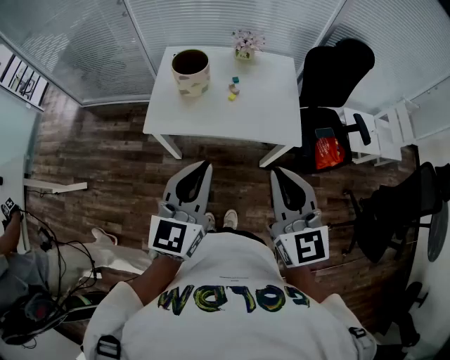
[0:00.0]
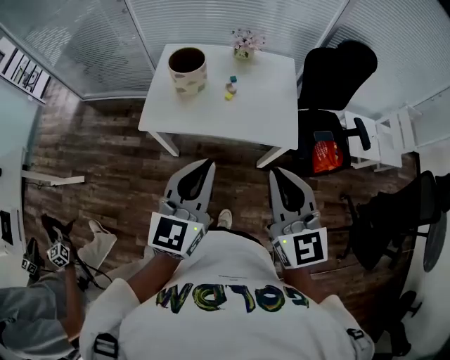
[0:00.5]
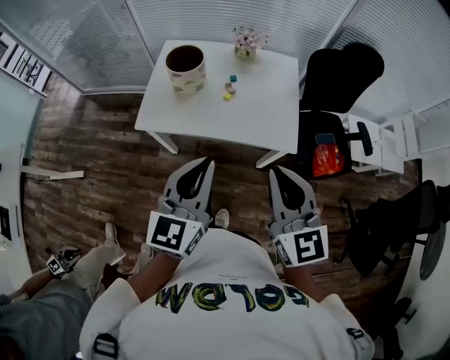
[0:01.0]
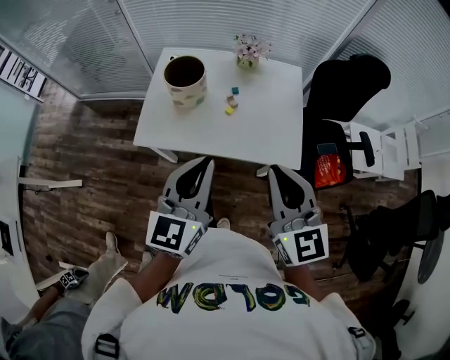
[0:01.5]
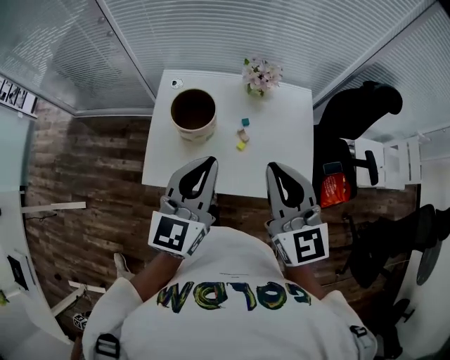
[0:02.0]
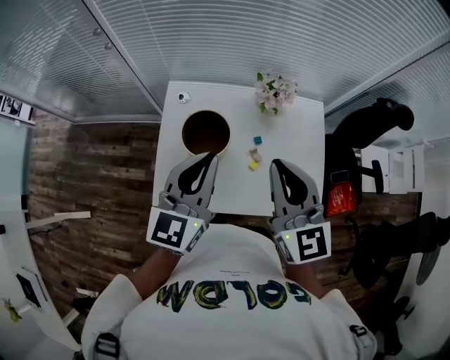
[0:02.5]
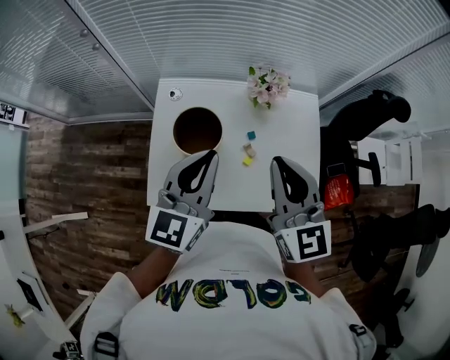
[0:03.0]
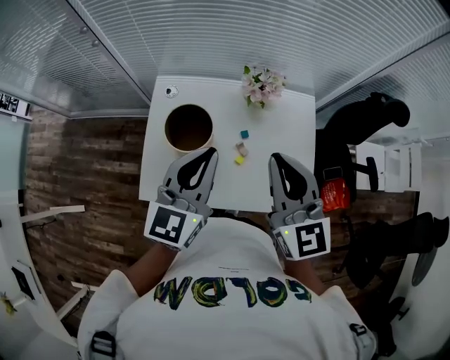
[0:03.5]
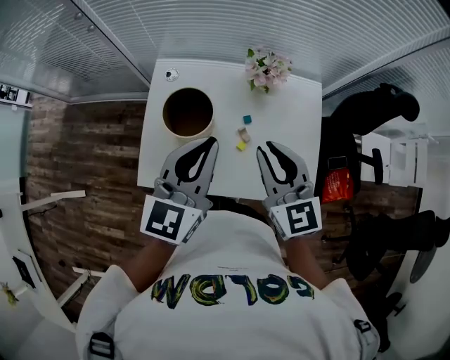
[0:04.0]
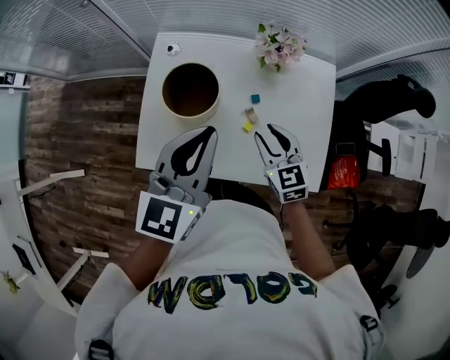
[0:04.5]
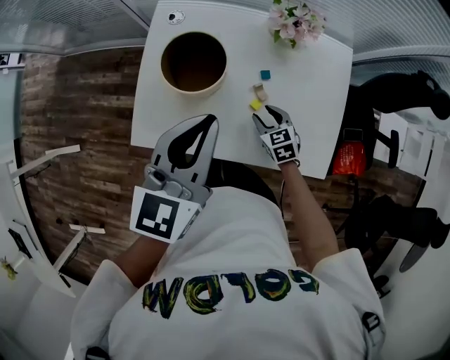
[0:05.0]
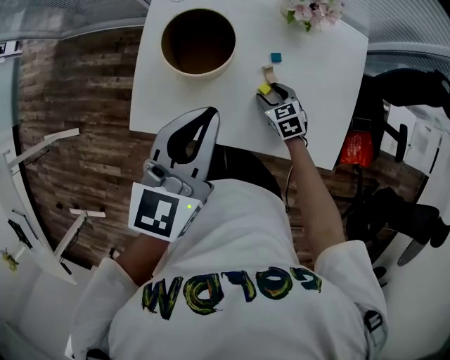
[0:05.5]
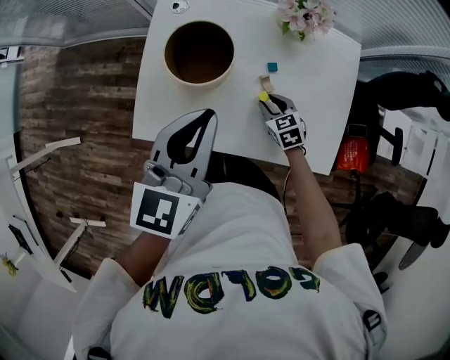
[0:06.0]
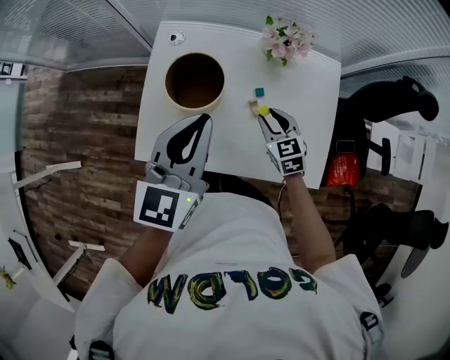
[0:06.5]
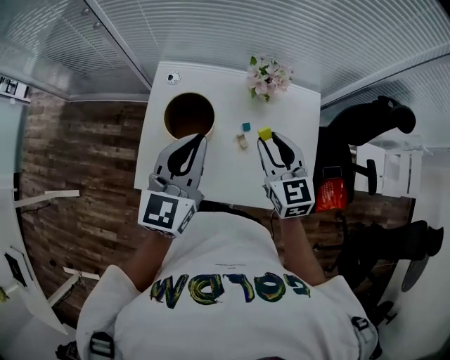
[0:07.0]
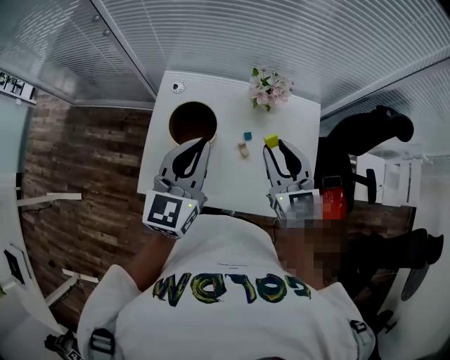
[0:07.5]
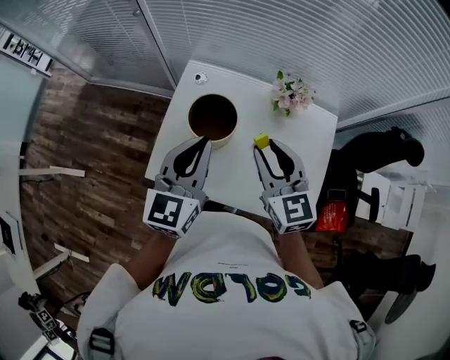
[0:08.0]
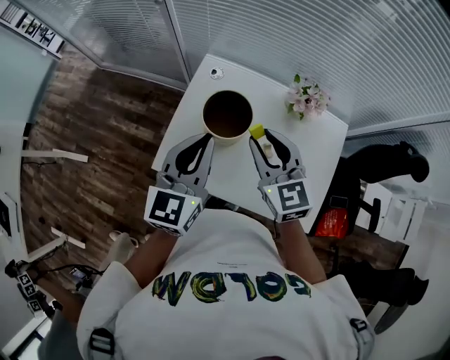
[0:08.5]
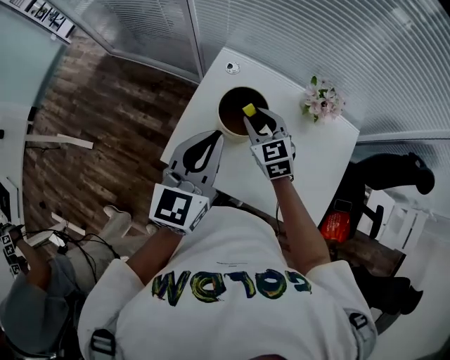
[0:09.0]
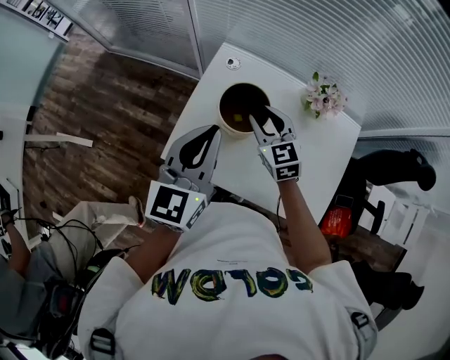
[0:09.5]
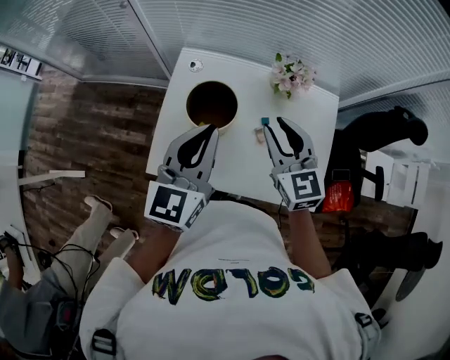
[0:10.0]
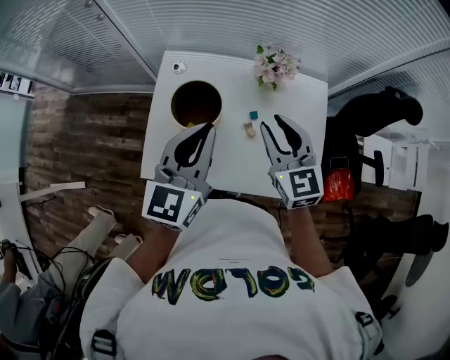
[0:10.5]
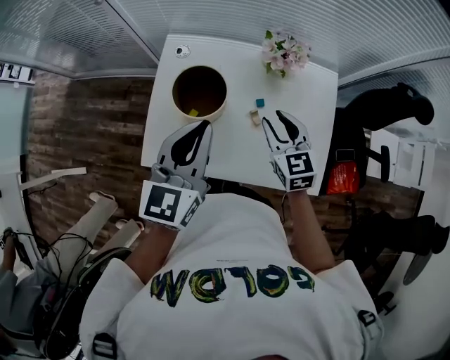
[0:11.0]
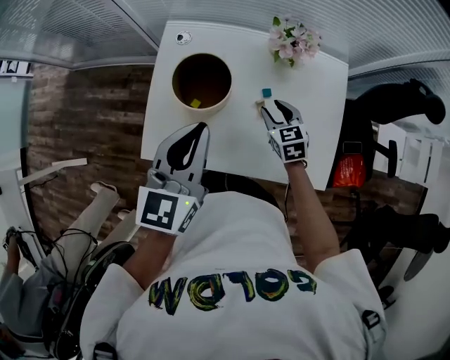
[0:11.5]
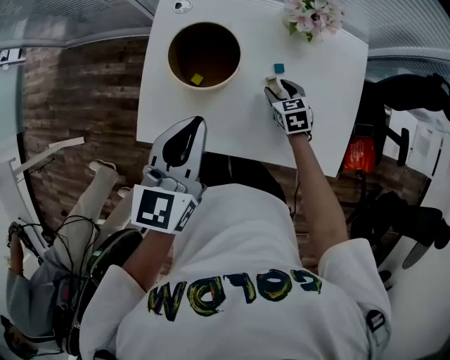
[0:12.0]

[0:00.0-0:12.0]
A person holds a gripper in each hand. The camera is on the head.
0:00.0 to 0:02.0: The two grippers go some 30 cm forward.
0:02.0 to 0:04.0: The right gripper moves forward and downward, about 15 cm, while the left gripper is displaced forward by about 10 cm.
0:04.0 to 0:06.0: The left gripper shifts approximately 10 cm downward; the right gripper is displaced downward by approximately 40 cm, tilts its fingers approximately 40 degrees downward, and opens and closes again.
0:06.0 to 0:08.0: The right gripper goes some 35 cm upward, and angles its fingers upward, by approximately 30 degrees; the left gripper goes approximately 10 cm upward.
0:08.0 to 0:10.0: The right gripper reaches approximately 10 cm to the left, then returns. Meanwhile the left gripper moves about 10 cm to the left and comes back.
0:10.0 to 0:12.0: The right gripper travels downward by roughly 35 cm, points its fingers roughly 40 degrees further downward, and opens, while the left gripper heads downward, covering approximately 15 cm.

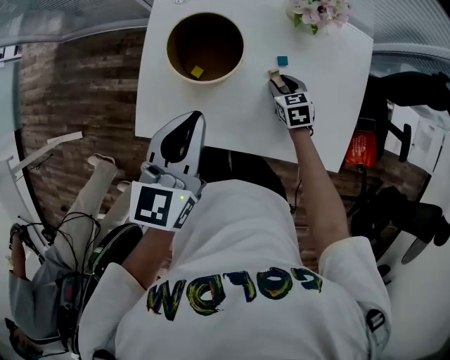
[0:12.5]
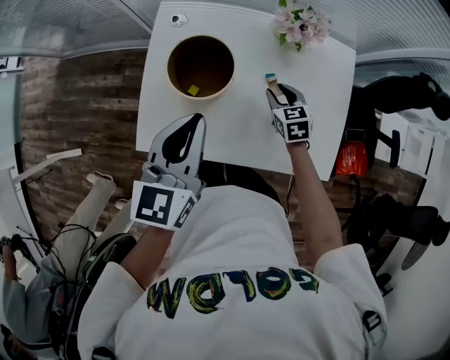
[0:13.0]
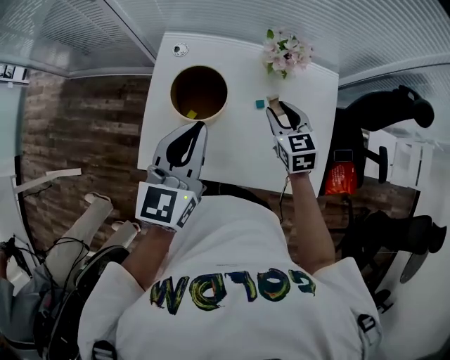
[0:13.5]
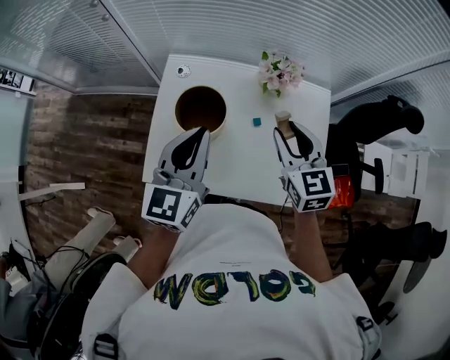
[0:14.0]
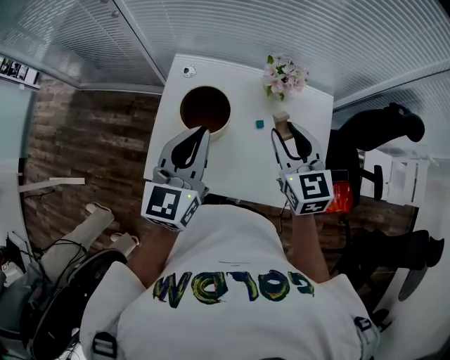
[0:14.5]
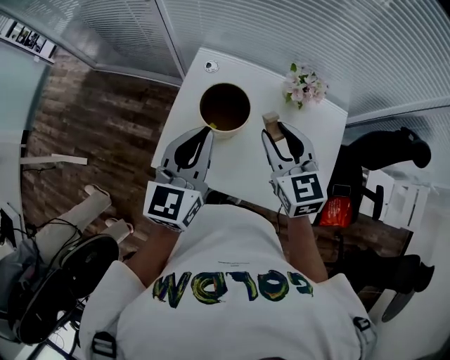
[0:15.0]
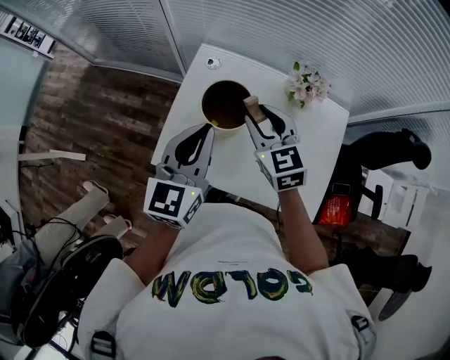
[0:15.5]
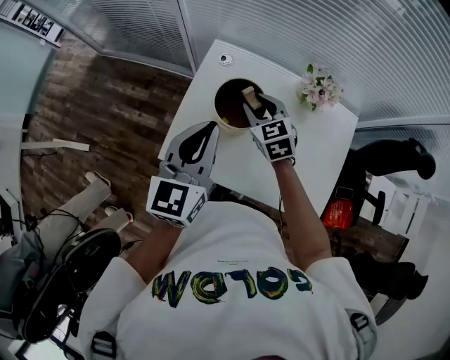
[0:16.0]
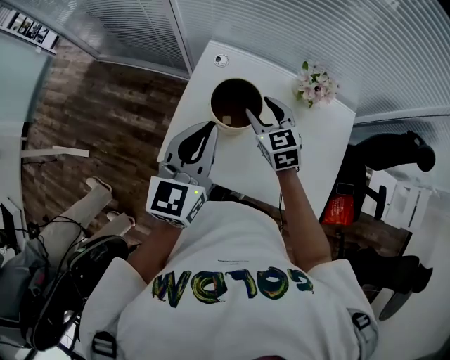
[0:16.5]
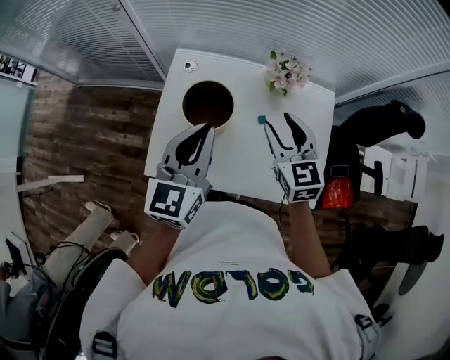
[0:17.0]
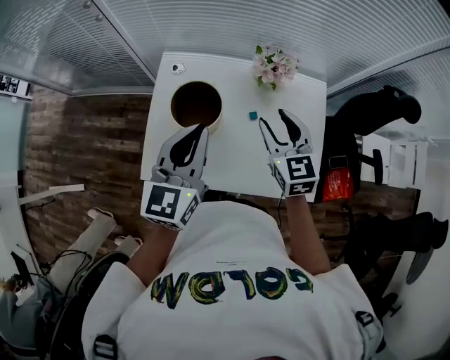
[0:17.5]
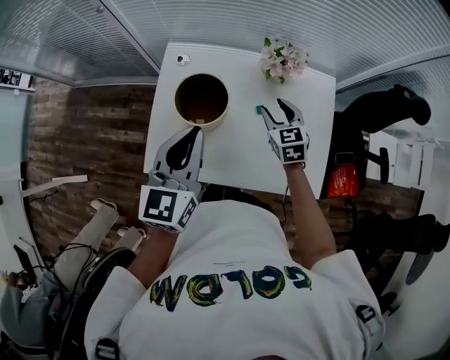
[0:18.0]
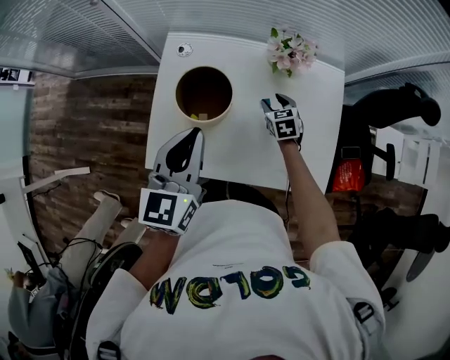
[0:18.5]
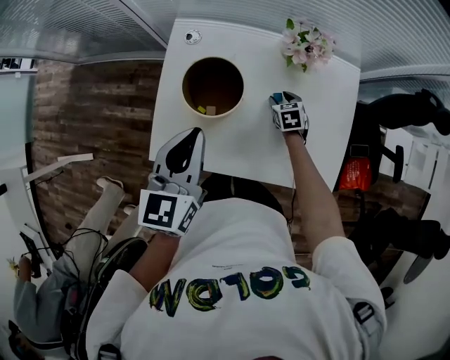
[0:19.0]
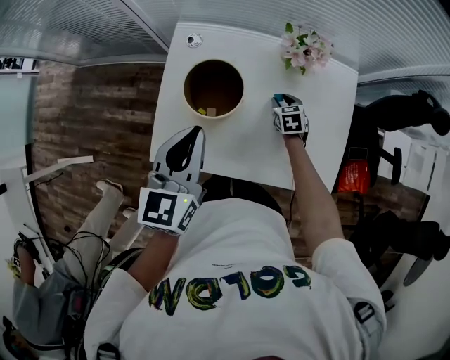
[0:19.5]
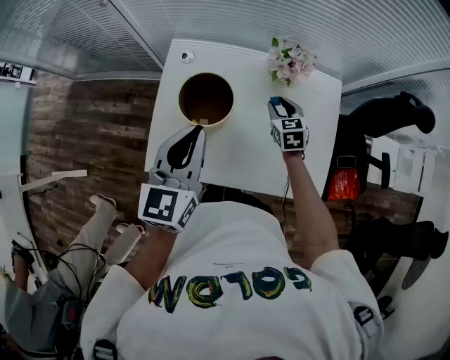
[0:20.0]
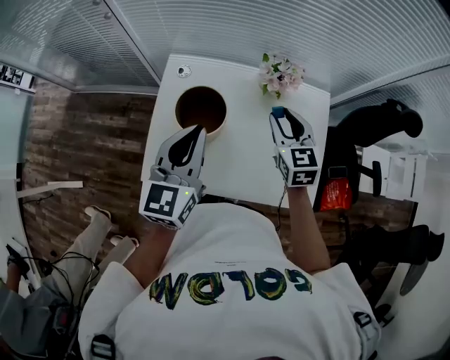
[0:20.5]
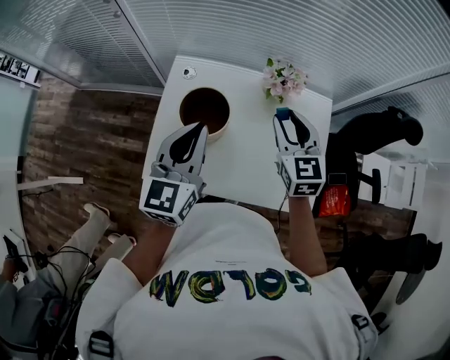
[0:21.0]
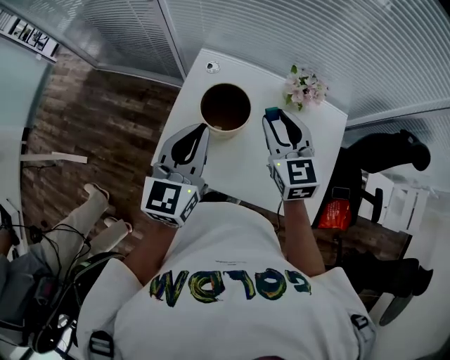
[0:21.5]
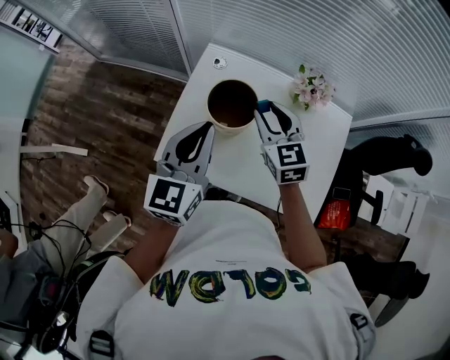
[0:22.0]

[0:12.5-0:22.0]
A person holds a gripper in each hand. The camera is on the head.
0:12.5 to 0:14.5: The left gripper heads upward, covering approximately 15 cm, while the right gripper goes some 40 cm upward, and angles its fingers upward, by approximately 30 degrees.
0:14.5 to 0:16.5: The left gripper moves to the left, roughly 5 cm. The right gripper travels to the left, downward and forward by some 20 cm.
0:16.5 to 0:18.0: The right gripper heads to the right, covering about 15 cm; the left gripper goes roughly 5 cm to the right.
0:18.0 to 0:20.0: The right gripper goes downward and returns, about 20 cm each way.
0:20.0 to 0:22.0: The left gripper shifts by roughly 5 cm. The right gripper shifts some 25 cm upward and to the left, and rotates about 30 degrees.

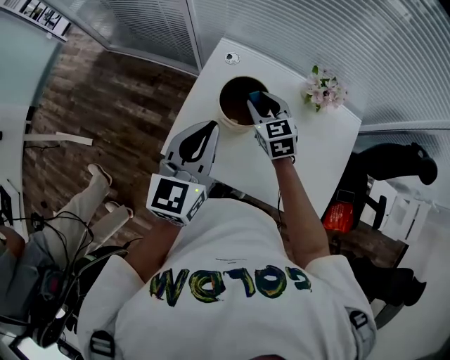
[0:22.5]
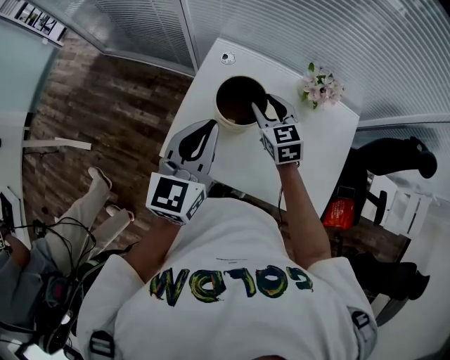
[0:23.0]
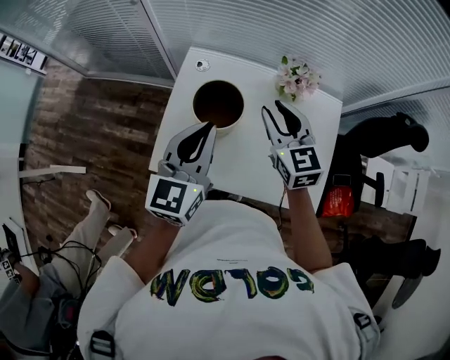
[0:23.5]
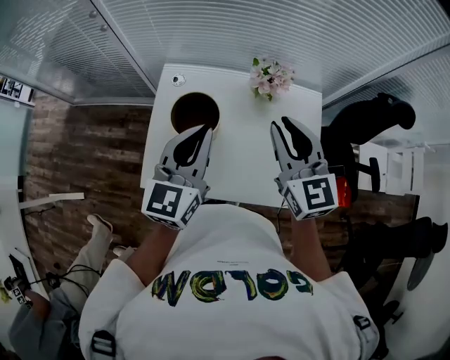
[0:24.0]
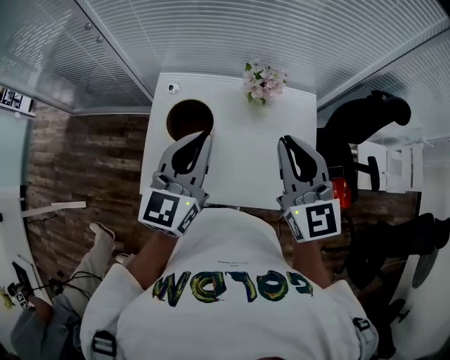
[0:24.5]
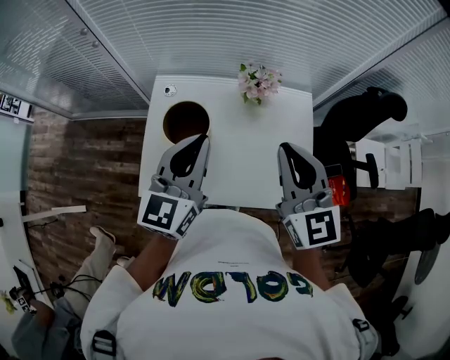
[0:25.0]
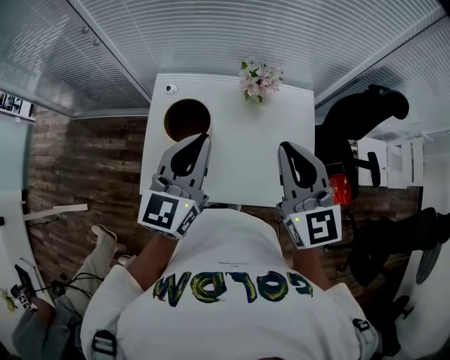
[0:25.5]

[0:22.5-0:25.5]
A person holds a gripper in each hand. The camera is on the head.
0:22.5 to 0:24.0: The left gripper heads to the right, covering some 10 cm. The right gripper travels upward, to the right and backward by roughly 30 cm, and swivels approximately 30 degrees.
0:24.0 to 0:25.5: The right gripper travels backward by about 5 cm.

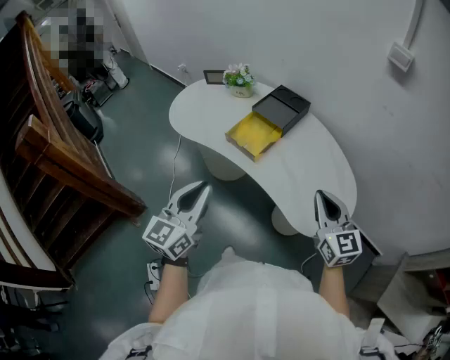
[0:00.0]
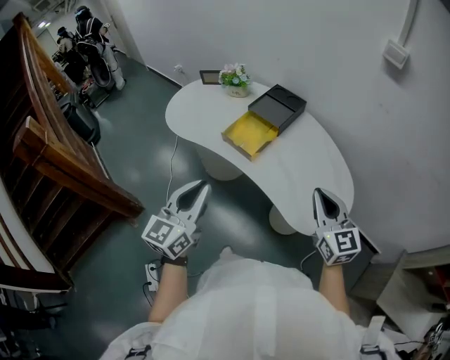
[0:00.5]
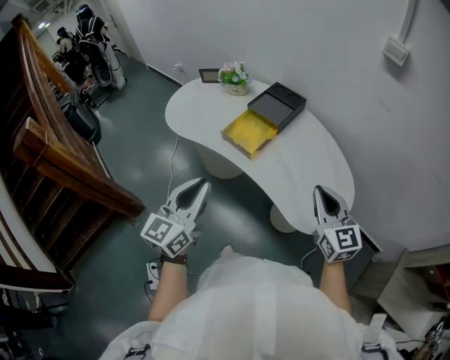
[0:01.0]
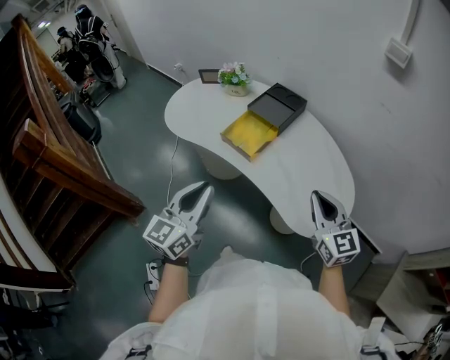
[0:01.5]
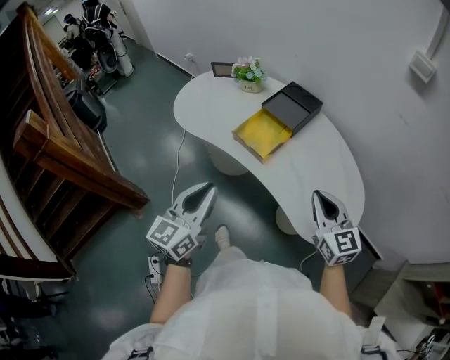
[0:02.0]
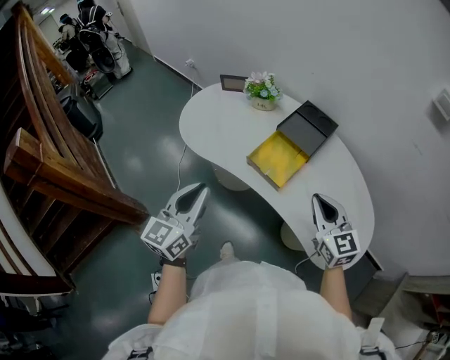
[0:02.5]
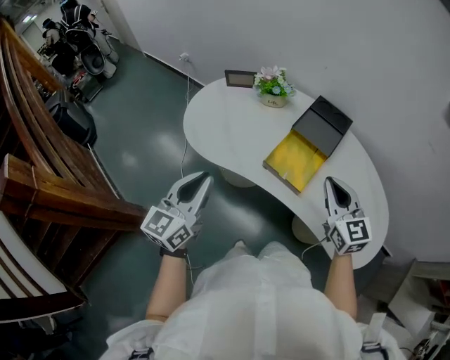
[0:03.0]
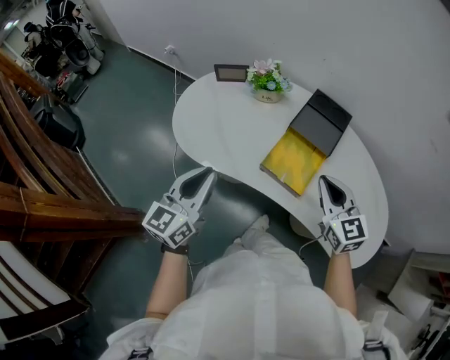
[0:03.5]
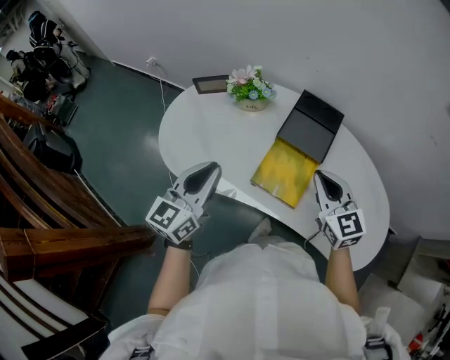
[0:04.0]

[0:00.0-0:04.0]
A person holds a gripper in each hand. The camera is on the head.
0:00.0 to 0:02.0: The right gripper changes place by some 5 cm.
0:02.0 to 0:04.0: Both grippers travel together forward and to the left, some 35 cm.
